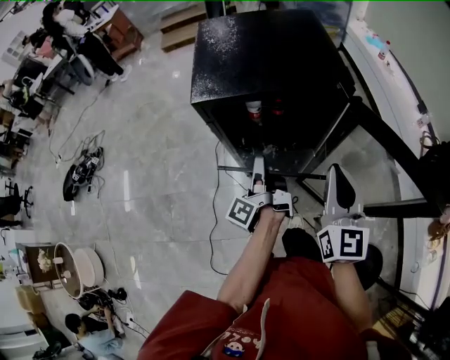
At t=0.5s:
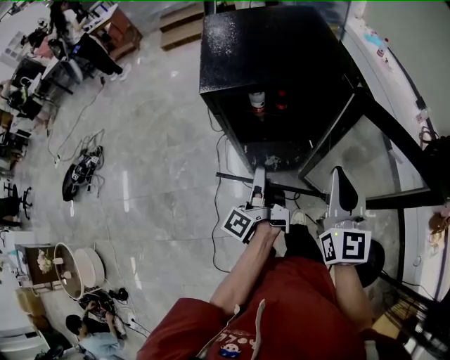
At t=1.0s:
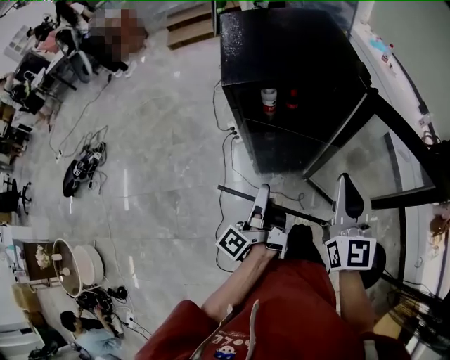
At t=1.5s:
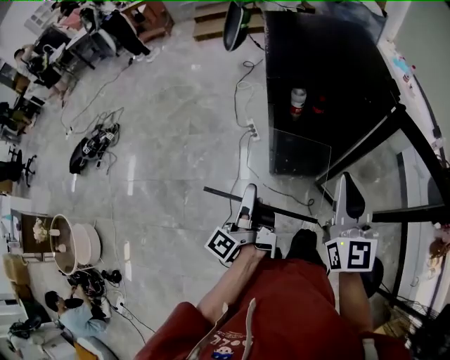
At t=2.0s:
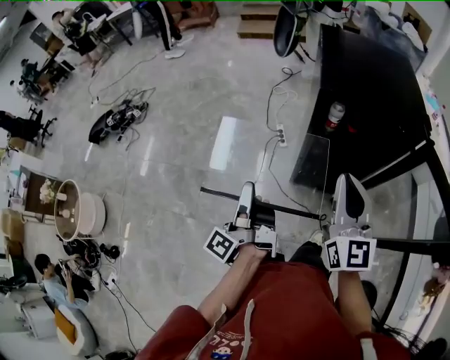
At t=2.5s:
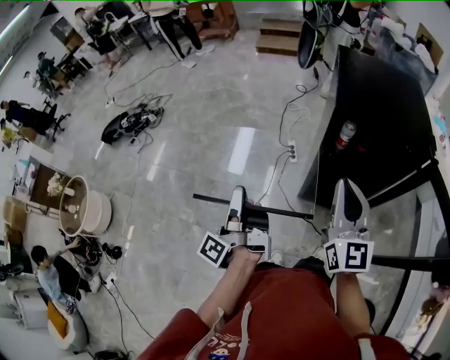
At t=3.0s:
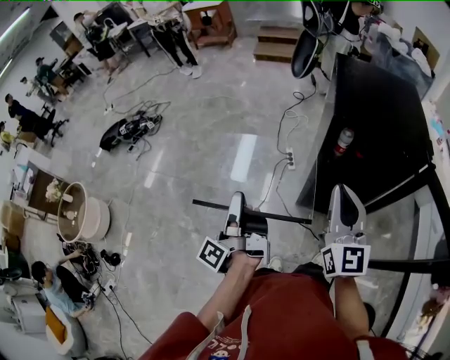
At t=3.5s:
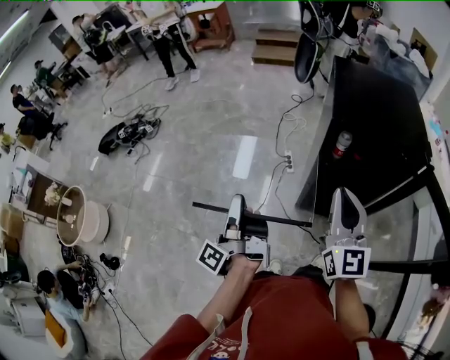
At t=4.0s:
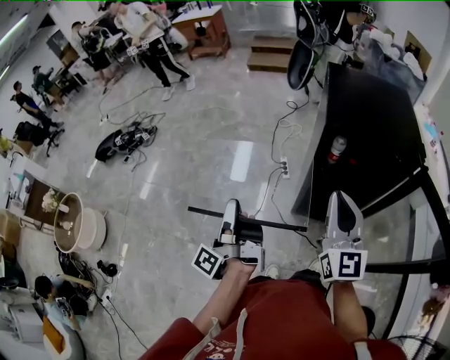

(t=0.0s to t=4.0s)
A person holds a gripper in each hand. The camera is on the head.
t=0.0s - t=2.0s: The left gripper goes about 30 cm to the left and backward, while the right gripper shifts approximately 25 cm to the left.
t=2.0s - t=4.0s: The left gripper moves to the left, roughly 5 cm.

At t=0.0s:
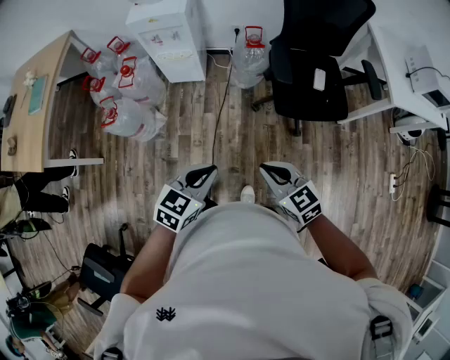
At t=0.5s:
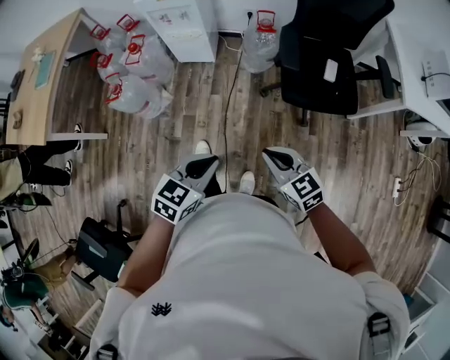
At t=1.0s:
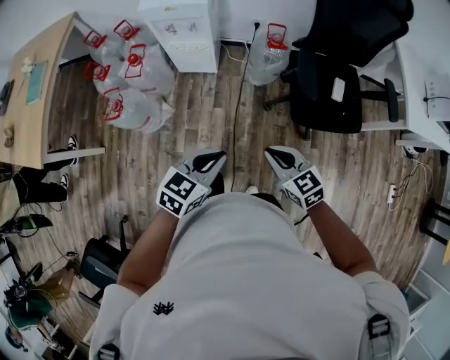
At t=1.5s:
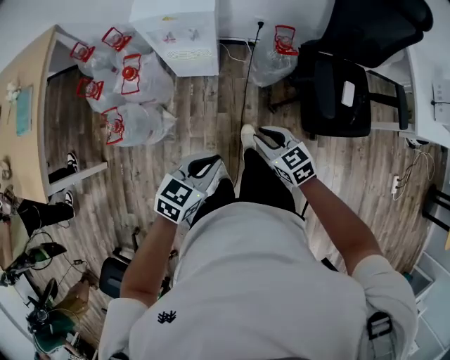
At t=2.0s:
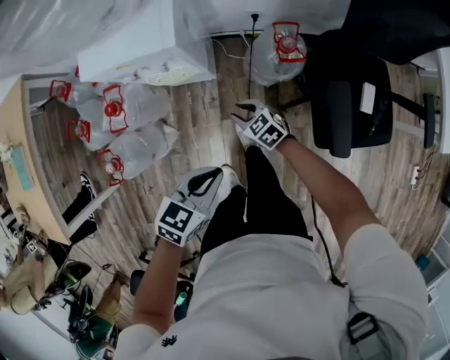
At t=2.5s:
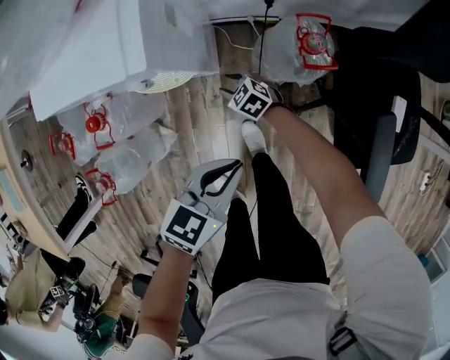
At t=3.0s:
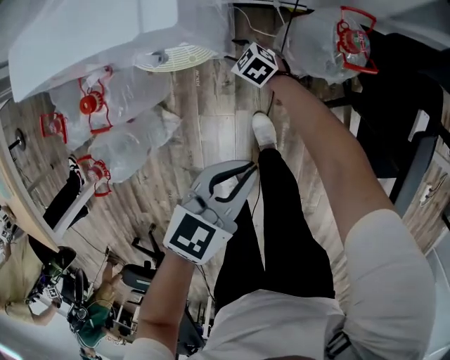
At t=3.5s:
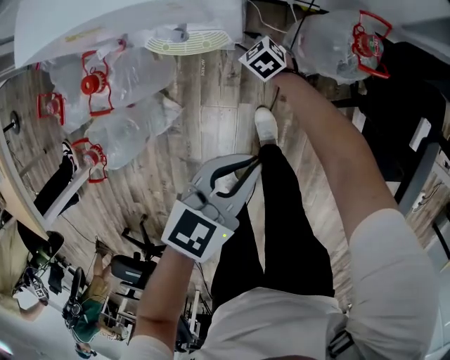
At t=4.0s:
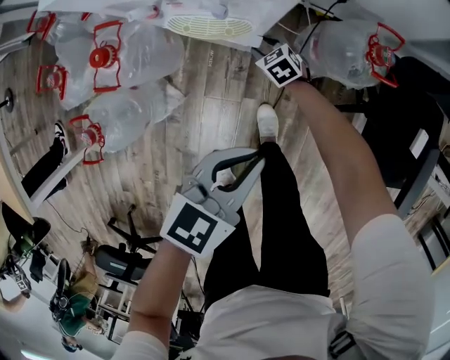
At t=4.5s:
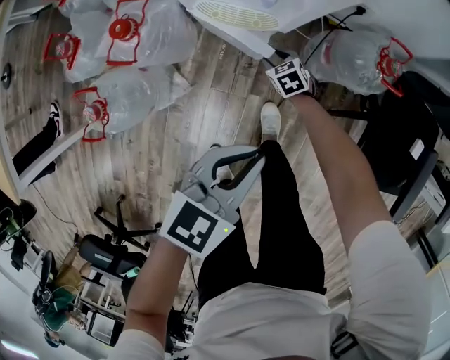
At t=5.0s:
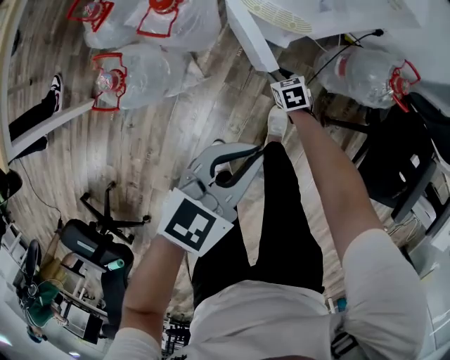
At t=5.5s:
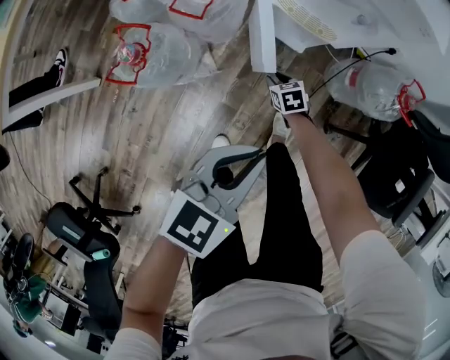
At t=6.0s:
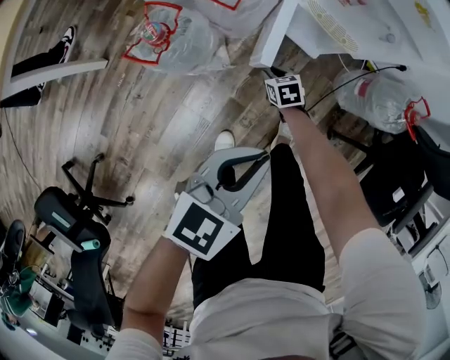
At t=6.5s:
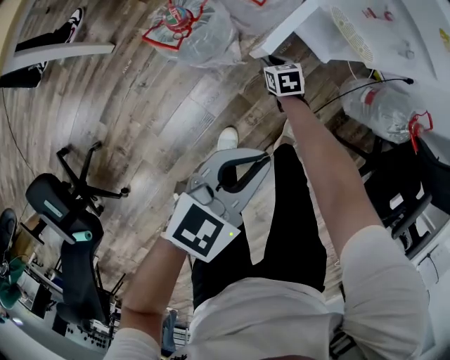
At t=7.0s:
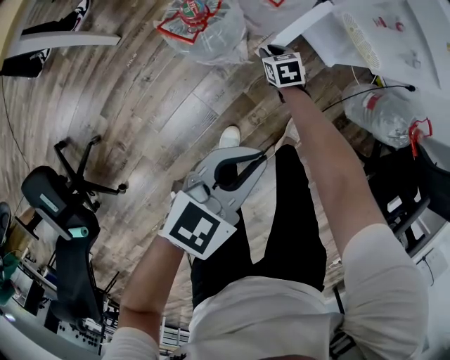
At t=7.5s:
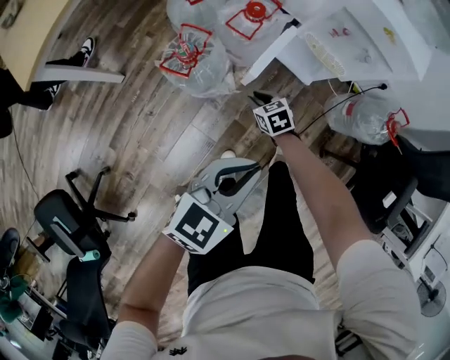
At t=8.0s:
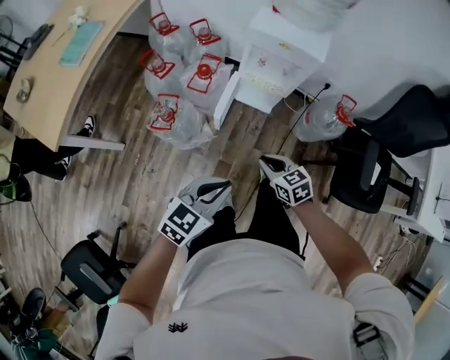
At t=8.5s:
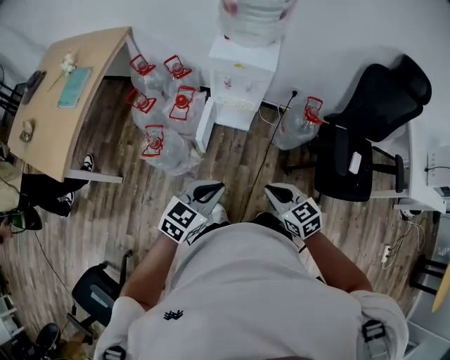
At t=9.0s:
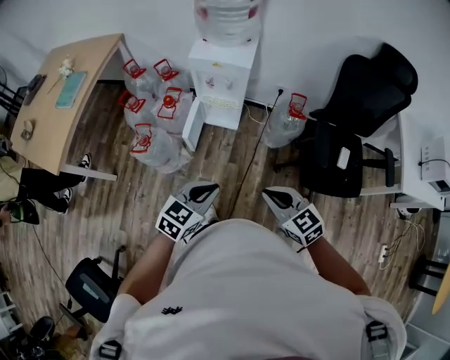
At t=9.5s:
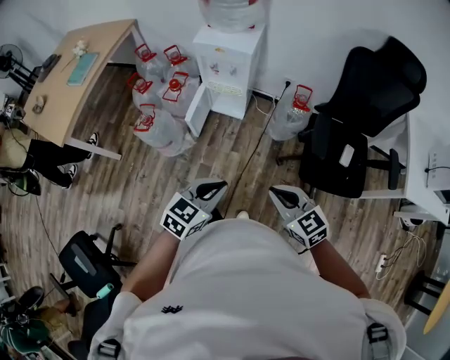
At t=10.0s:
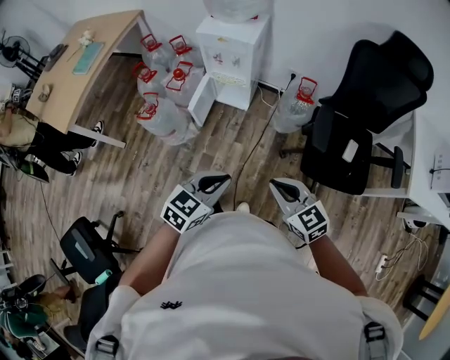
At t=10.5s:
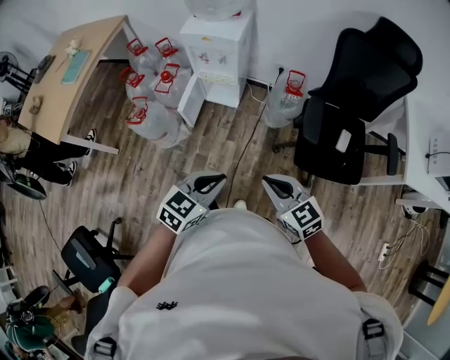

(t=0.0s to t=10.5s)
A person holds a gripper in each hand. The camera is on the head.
t=0.0s - t=2.0s: The right gripper travels forward and downward by some 60 cm, and opens, while the left gripper shifts approximately 40 cm forward.
t=2.0s - t=4.0s: The right gripper heads downward, forward and to the left, covering roughly 30 cm, while the left gripper shifts some 15 cm downward and forward.
t=4.0s - t=6.5s: The two grippers go some 35 cm to the left and backward. The left gripper swivels about 20 degrees.
t=6.5s - t=8.5s: The left gripper travels upward and backward by approximately 25 cm, and changes its angle by approximately 30 degrees. Meanwhile the right gripper travels upward and backward by approximately 60 cm, changes its angle by about 30 degrees, and closes.
t=8.5s - t=10.5s: Both grippers travel together to the right and backward, roughly 25 cm.

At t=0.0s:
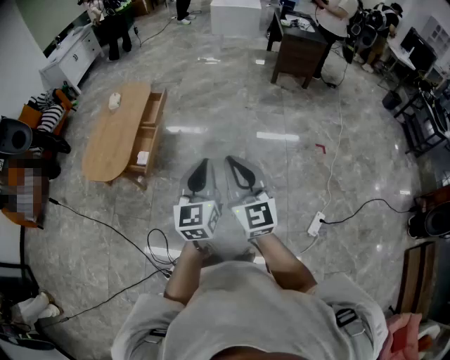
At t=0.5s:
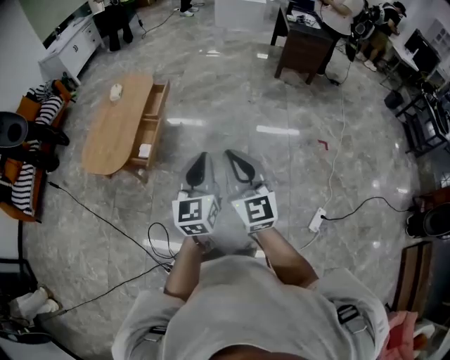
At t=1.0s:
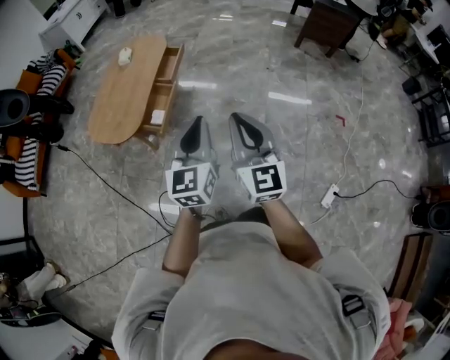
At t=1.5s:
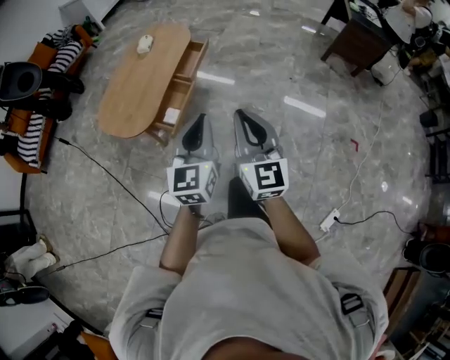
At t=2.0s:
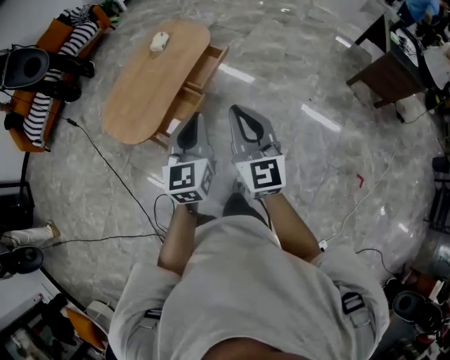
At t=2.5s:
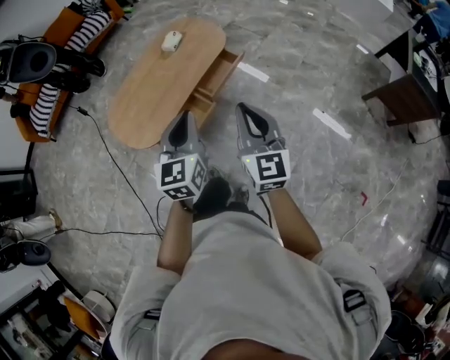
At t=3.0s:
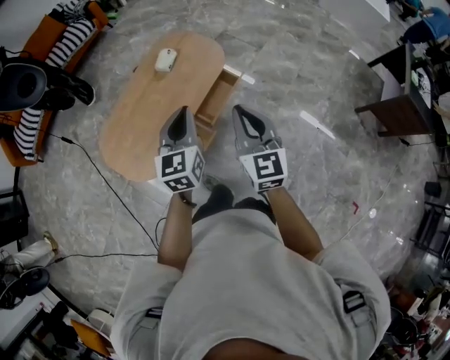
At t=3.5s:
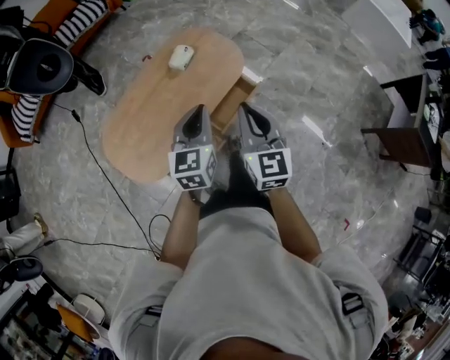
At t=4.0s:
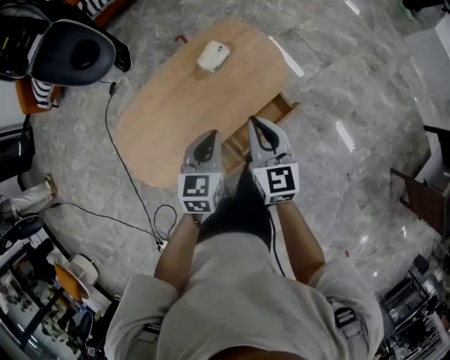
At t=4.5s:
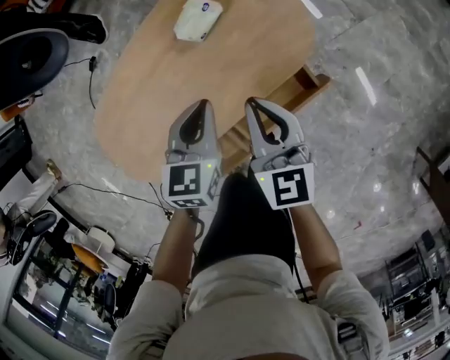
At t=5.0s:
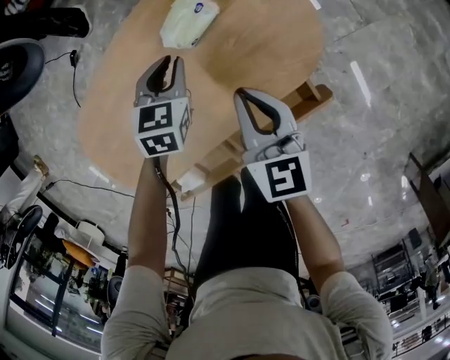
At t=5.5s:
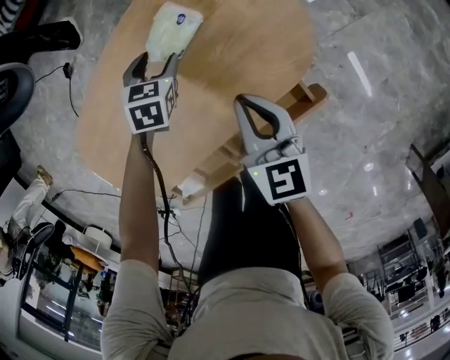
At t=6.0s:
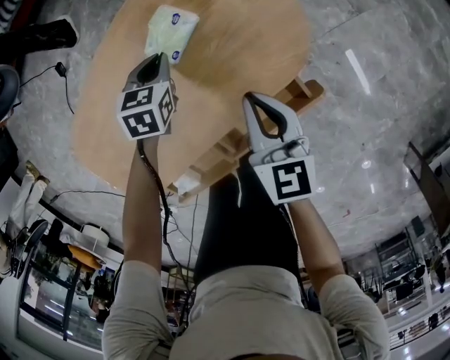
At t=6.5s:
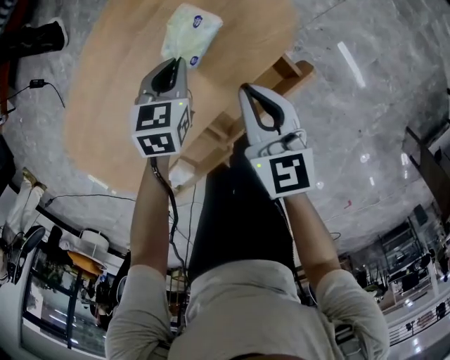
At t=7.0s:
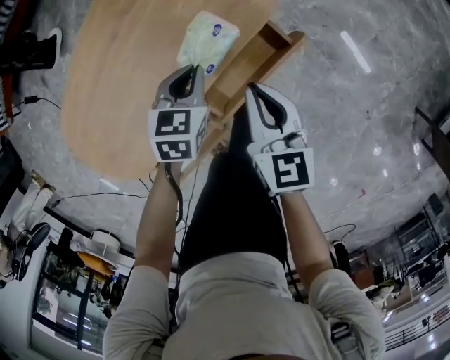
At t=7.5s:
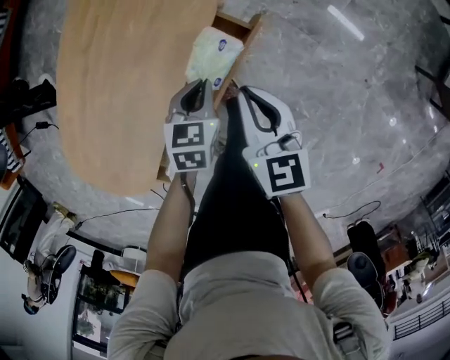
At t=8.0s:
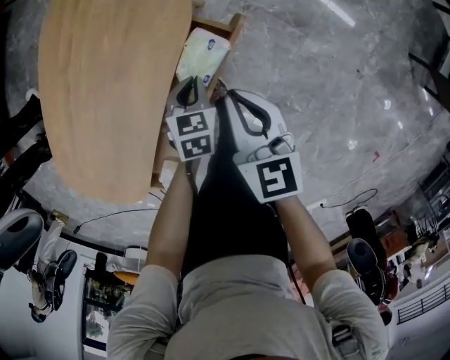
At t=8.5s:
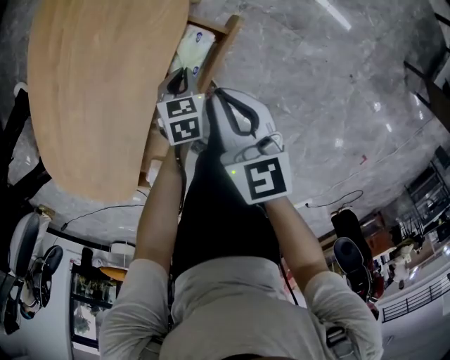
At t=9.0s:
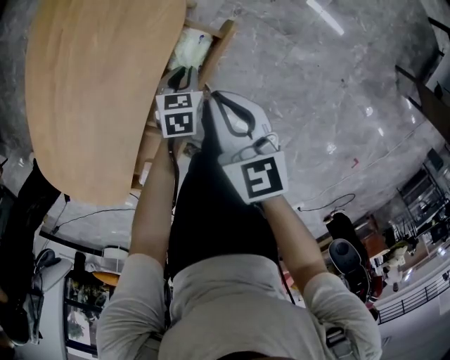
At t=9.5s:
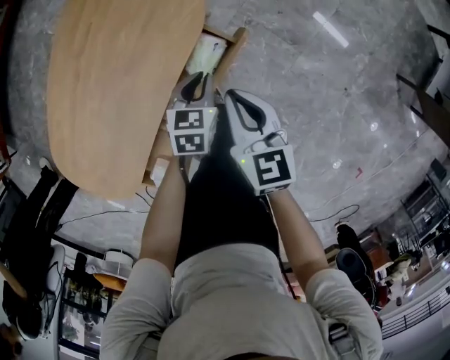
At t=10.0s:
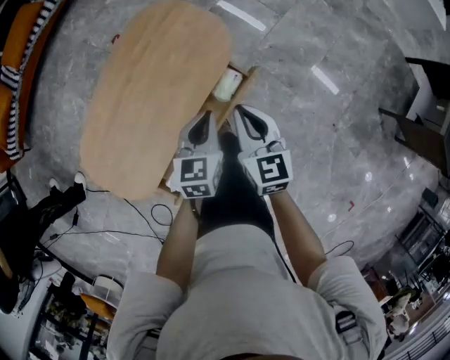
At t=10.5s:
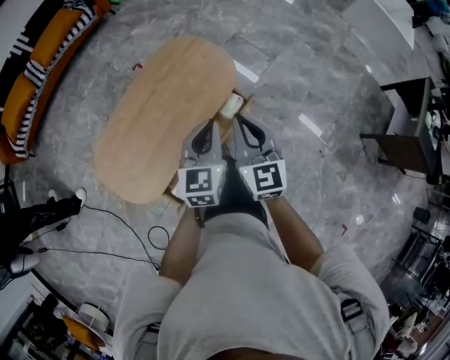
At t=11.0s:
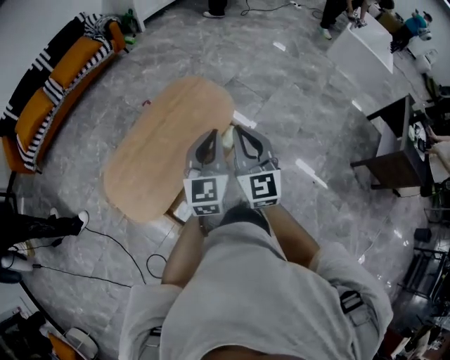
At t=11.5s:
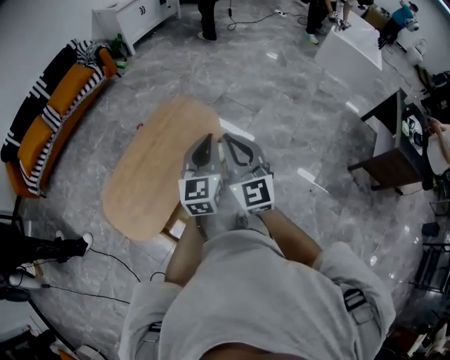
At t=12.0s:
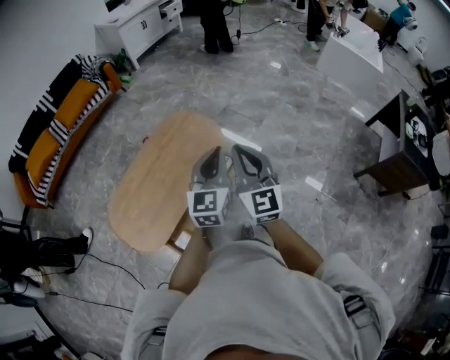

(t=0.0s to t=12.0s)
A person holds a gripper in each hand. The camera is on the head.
t=0.0s - t=2.0s: The pair of grippers is taken forward, about 40 cm. The right gripper rotates some 20 degrees, while the left gripper changes its angle by approximately 30 degrees.
t=2.0s - t=4.0s: Both grippers are carried forward, some 60 cm. The left gripper swivels some 30 degrees. The right gripper rotates some 30 degrees.
t=4.0s - t=6.0s: Both grippers move downward and forward, approximately 40 cm. The left gripper swivels roughly 20 degrees, and opens, then closes once more.
t=6.0s - t=8.0s: The left gripper ends up some 35 cm from where it was, and swivels approximately 20 degrees. The right gripper moves about 25 cm, and swivels roughly 20 degrees.
t=8.0s - t=10.0s: The left gripper heads upward, covering about 30 cm, and turns by some 30 degrees. The right gripper moves upward, roughly 20 cm.
t=10.0s - t=12.0s: The right gripper heads upward and backward, covering approximately 35 cm, and swivels approximately 30 degrees. Meanwhile the left gripper shifts approximately 35 cm upward, and tips its fingers upward by some 30 degrees.
